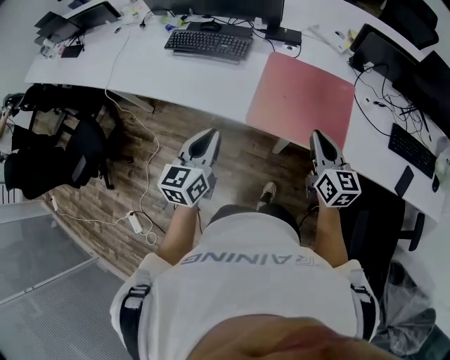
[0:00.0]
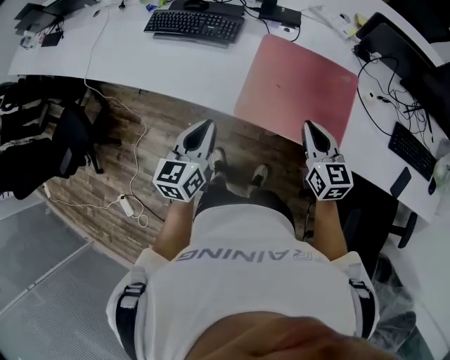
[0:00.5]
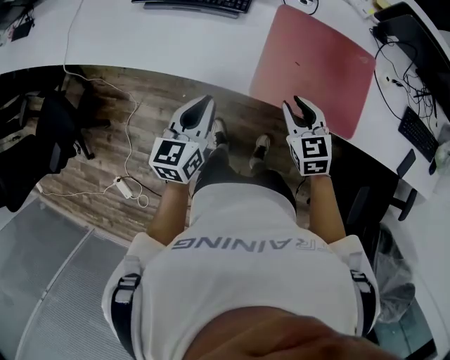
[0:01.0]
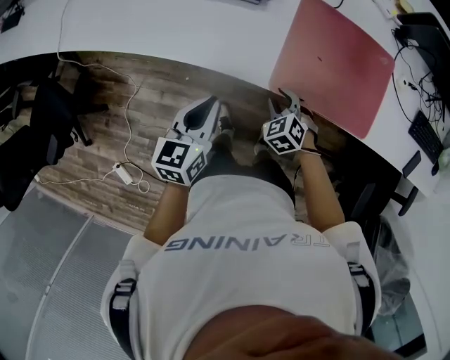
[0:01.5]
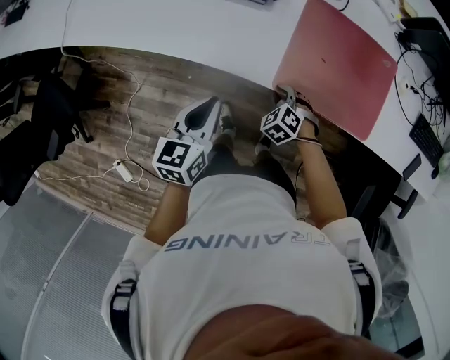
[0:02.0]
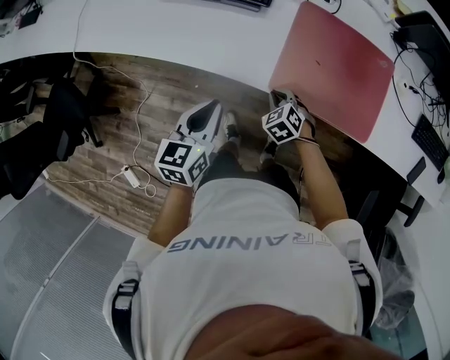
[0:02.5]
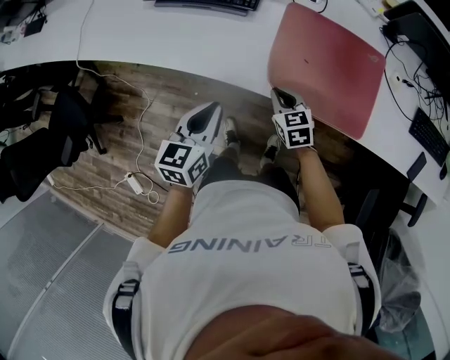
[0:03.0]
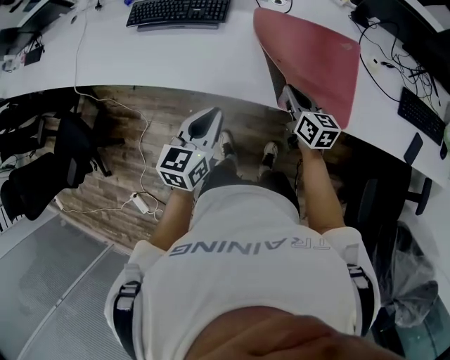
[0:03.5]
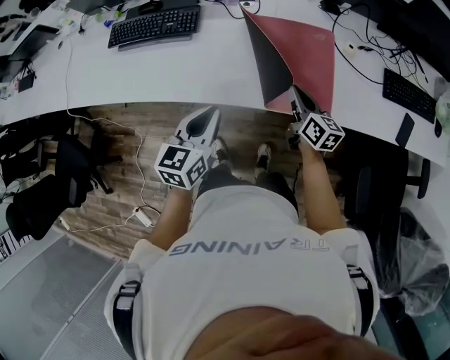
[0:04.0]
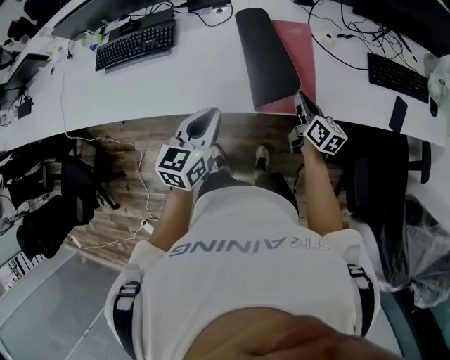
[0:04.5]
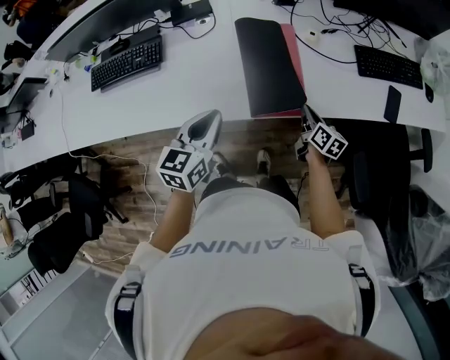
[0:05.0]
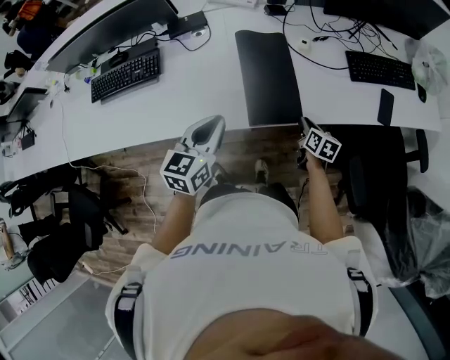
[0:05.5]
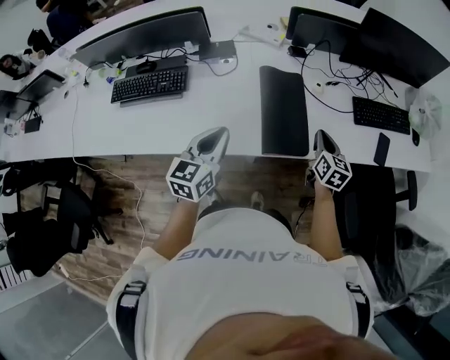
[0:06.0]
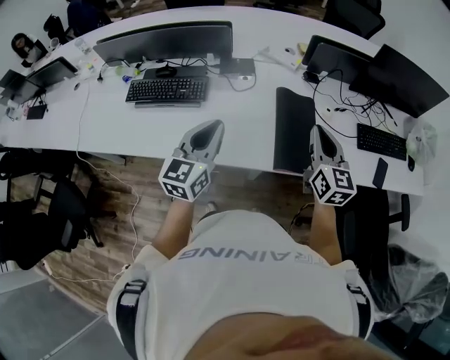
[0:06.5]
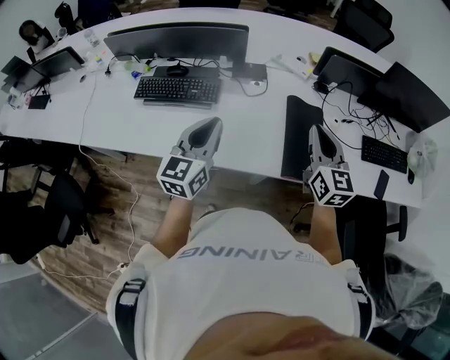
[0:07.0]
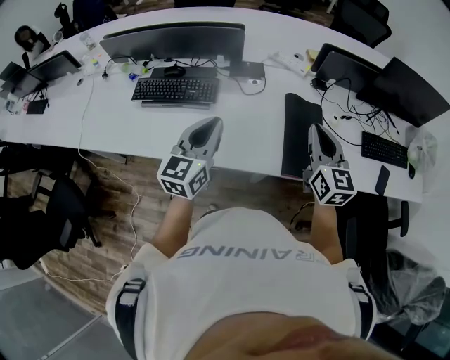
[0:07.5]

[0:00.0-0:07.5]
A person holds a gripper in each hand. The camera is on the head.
0:00.0 to 0:02.0: The right gripper heads downward and to the left, covering roughly 35 cm, and tilts its fingers about 50 degrees downward. The left gripper goes roughly 20 cm downward, to the left and forward.
0:02.0 to 0:04.0: The grippers both shift to the right and upward by some 25 cm. The right gripper rotates around the line of its fingers by approximately 80 degrees, clockwise from behind.
0:04.0 to 0:05.5: The left gripper goes roughly 15 cm to the right and forward. The right gripper travels to the right and downward by roughly 25 cm, and changes its angle by about 30 degrees.
0:05.5 to 0:07.5: The left gripper shifts about 25 cm to the left and upward, and swivels roughly 20 degrees. Meanwhile the right gripper shifts about 40 cm upward and to the left, and tips its fingers upward by approximately 30 degrees.

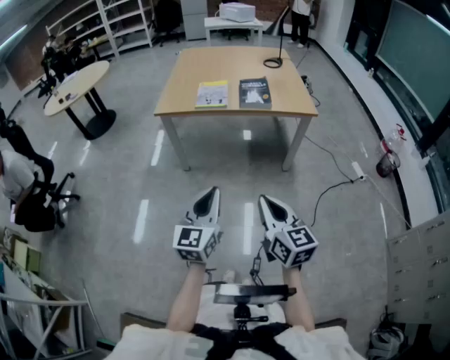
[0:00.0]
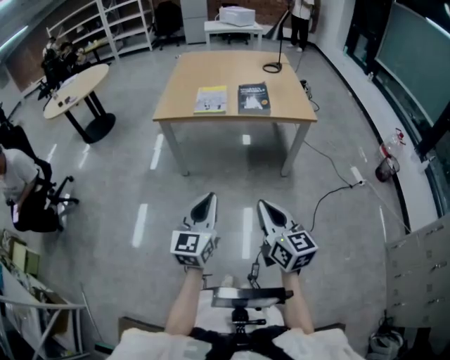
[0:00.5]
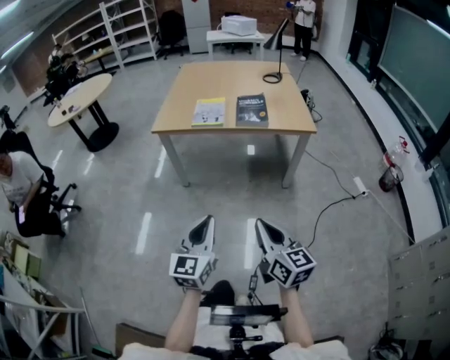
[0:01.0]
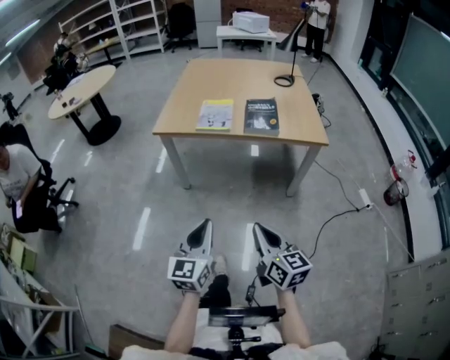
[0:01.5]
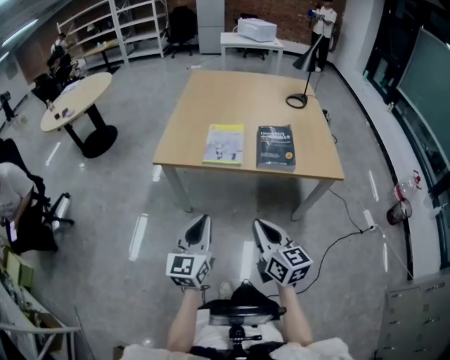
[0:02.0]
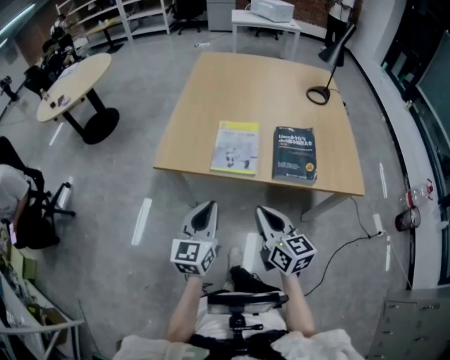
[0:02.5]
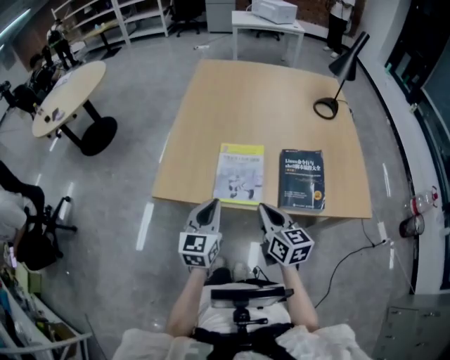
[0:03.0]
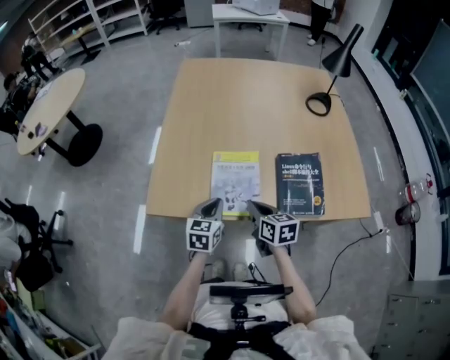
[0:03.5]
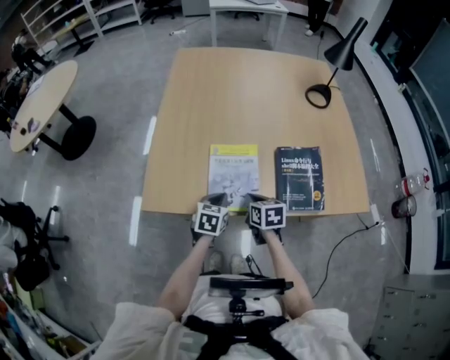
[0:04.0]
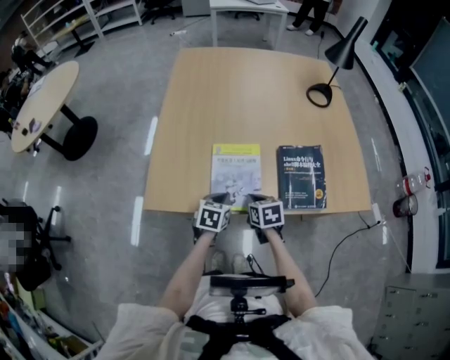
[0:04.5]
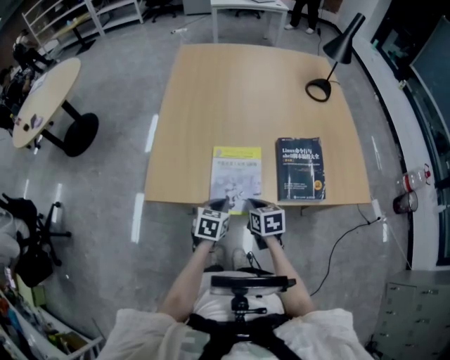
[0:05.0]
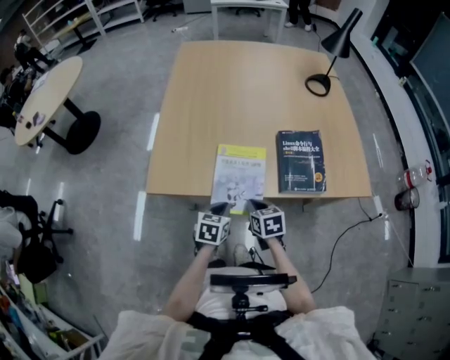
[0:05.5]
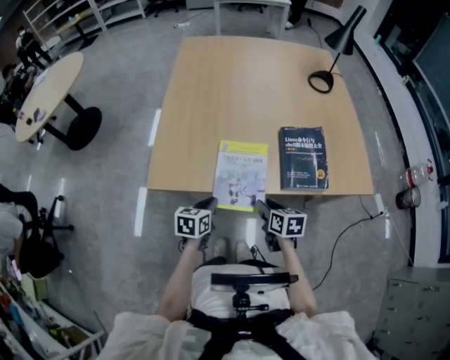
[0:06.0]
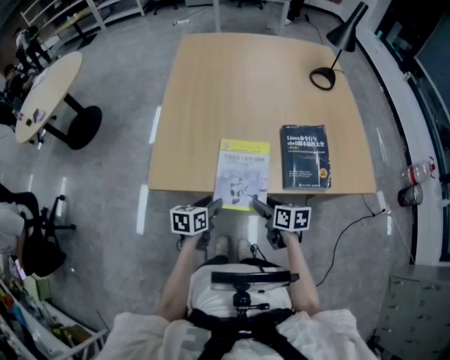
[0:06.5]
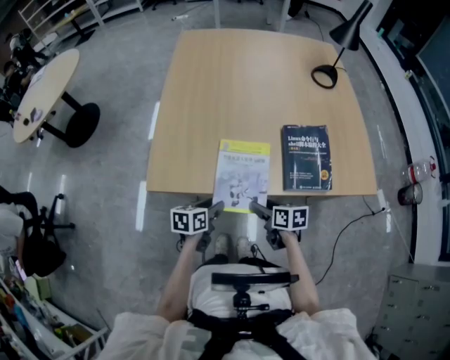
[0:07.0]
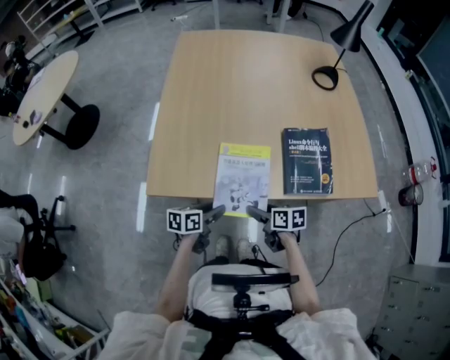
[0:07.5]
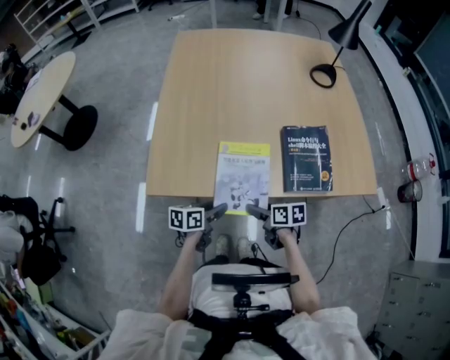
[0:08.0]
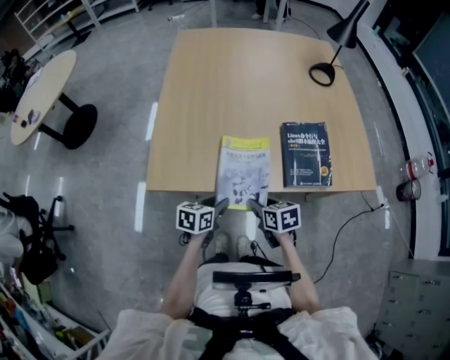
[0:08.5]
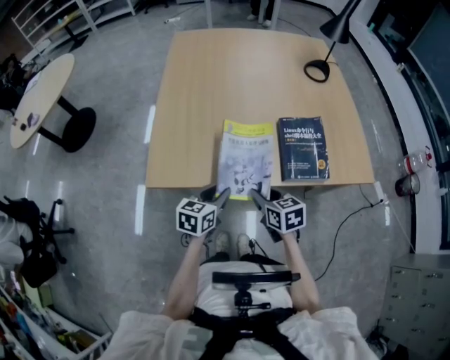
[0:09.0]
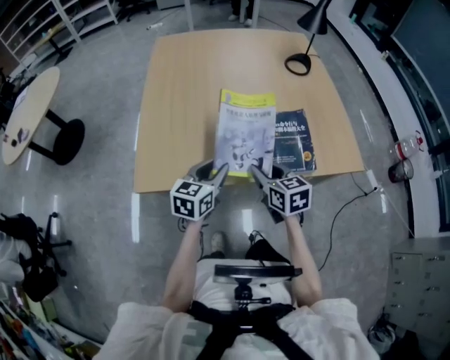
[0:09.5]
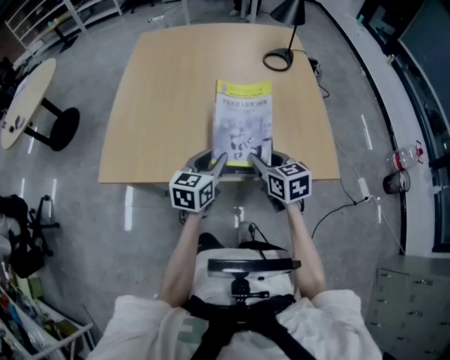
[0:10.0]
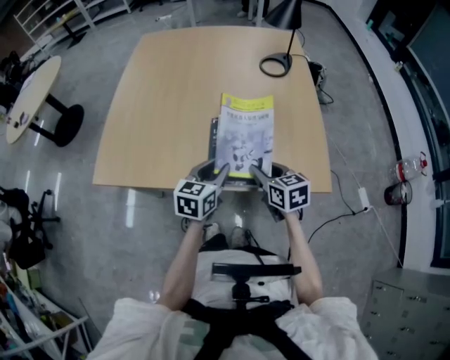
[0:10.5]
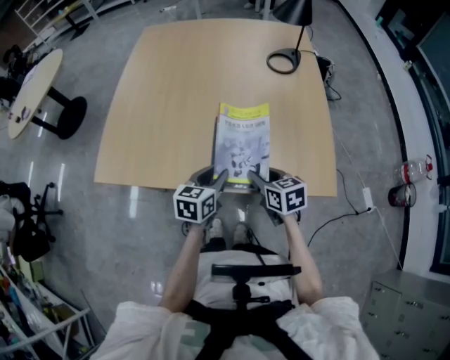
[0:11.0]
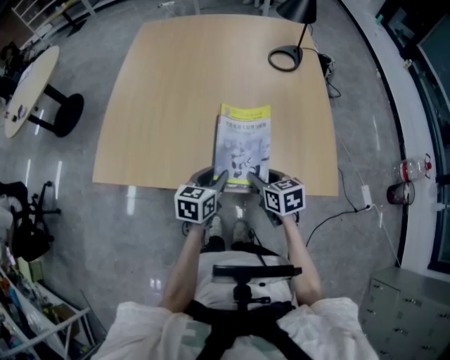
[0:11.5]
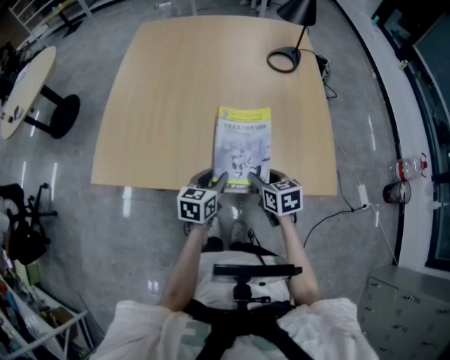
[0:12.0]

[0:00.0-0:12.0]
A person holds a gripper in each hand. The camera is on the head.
0:00.0 to 0:02.0: The grippers both shift forward by approximately 30 cm.
0:02.0 to 0:04.0: Both grippers are carried forward, approximately 40 cm. The grippers both shift downward by some 20 cm. The right gripper points its fingers approximately 40 degrees further downward, while the left gripper tips its fingers downward by approximately 40 degrees.
0:04.0 to 0:06.0: Both grippers move backward, approximately 10 cm. The right gripper opens up.
0:06.0 to 0:08.0: The right gripper shifts by some 5 cm, and turns by approximately 20 degrees; the left gripper rotates about 30 degrees, and opens.
0:08.0 to 0:10.0: The two grippers go approximately 30 cm to the right and upward. The right gripper turns by some 40 degrees, and closes; the left gripper changes its angle by roughly 40 degrees.
0:10.0 to 0:12.0: The two grippers go about 10 cm downward.

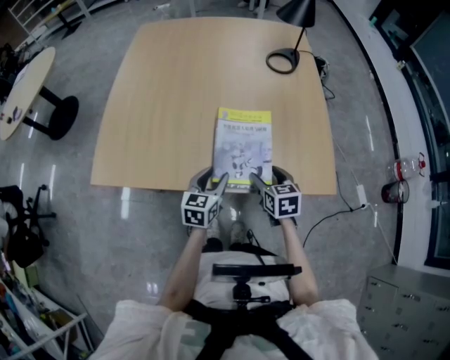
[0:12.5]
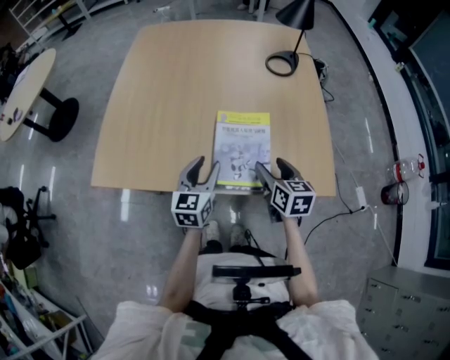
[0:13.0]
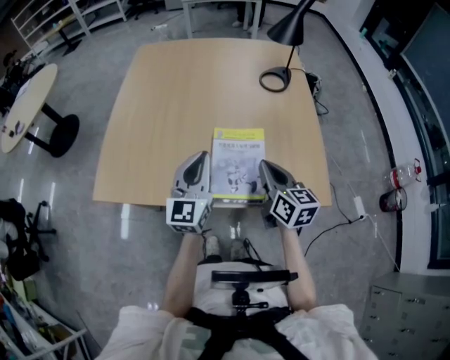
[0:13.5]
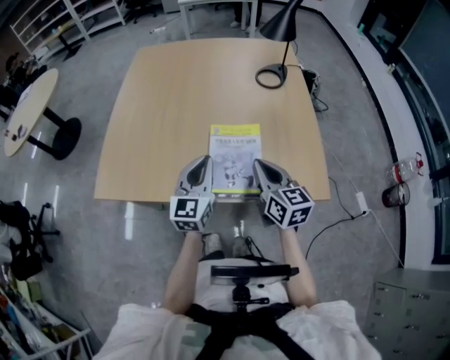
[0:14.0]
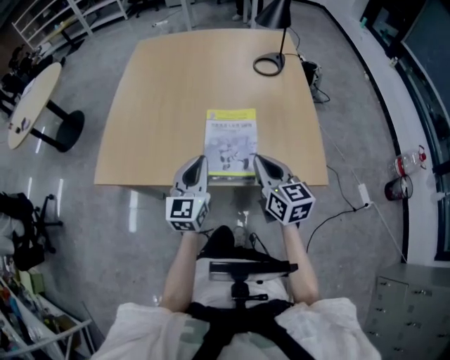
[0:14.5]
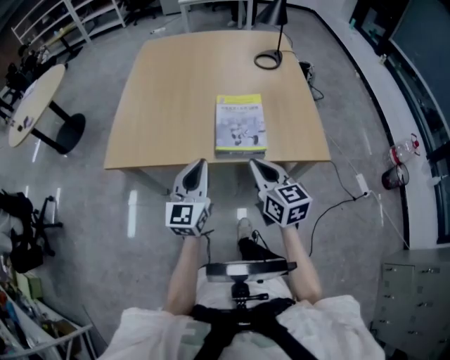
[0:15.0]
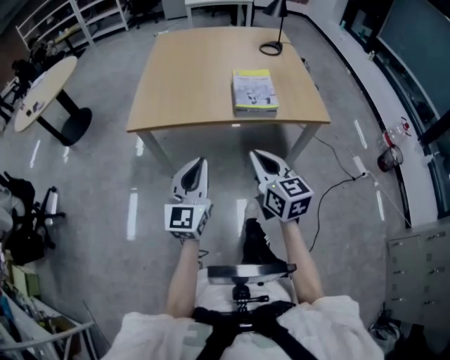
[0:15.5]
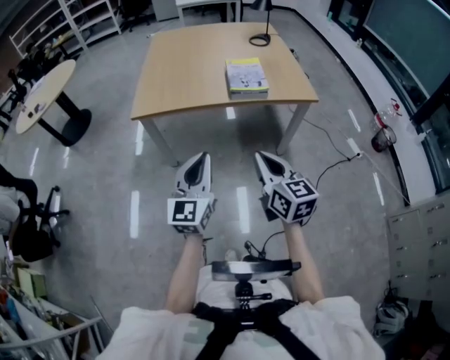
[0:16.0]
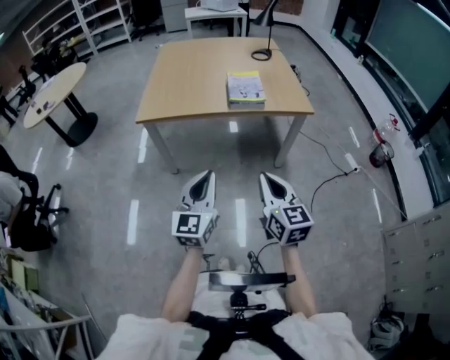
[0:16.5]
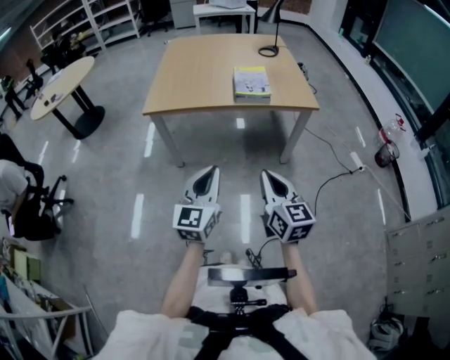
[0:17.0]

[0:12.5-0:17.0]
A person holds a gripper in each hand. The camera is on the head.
0:12.5 to 0:14.5: Both grippers move upward, approximately 15 cm. The right gripper changes its angle by some 30 degrees, and closes. Meanwhile the left gripper turns by approximately 30 degrees, and closes.
0:14.5 to 0:17.0: Both grippers are carried backward, some 50 cm.

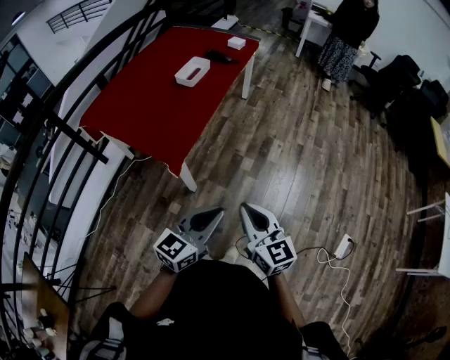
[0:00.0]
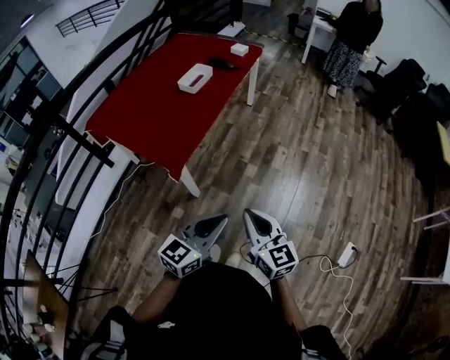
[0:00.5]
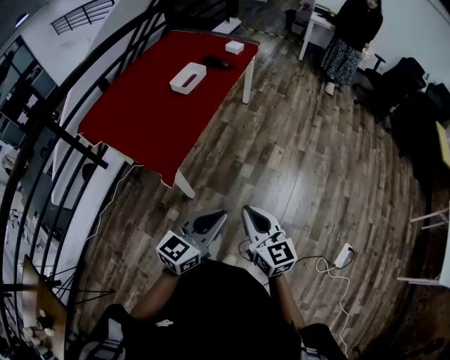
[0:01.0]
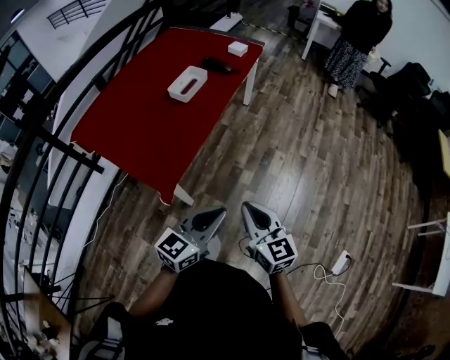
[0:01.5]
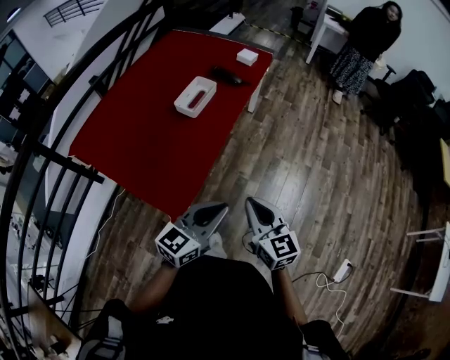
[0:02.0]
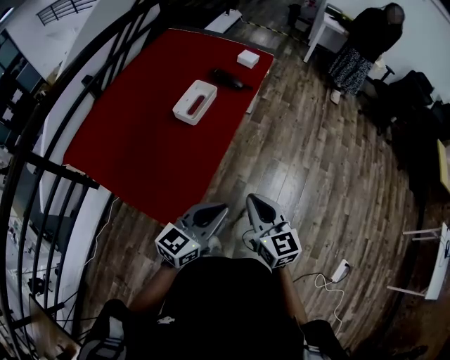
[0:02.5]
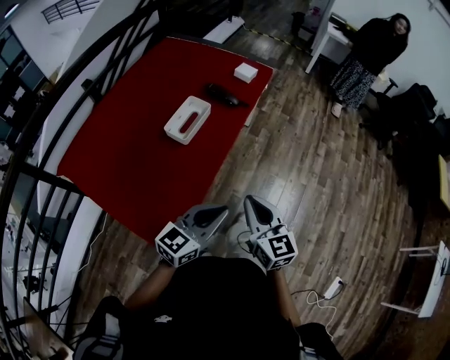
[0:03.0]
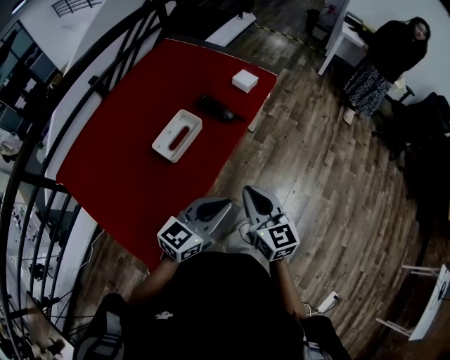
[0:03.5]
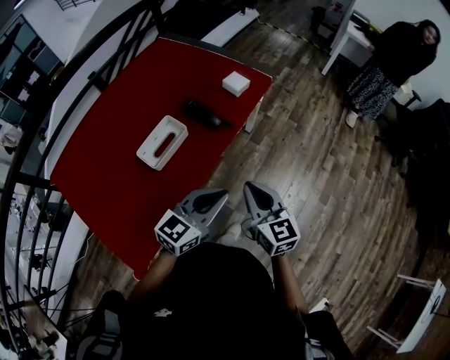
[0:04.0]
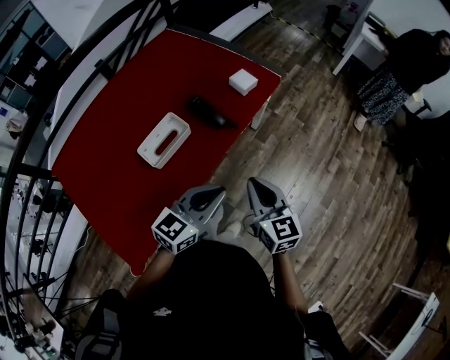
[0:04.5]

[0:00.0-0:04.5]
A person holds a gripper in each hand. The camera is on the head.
0:00.0 to 0:02.0: Both grippers move forward, roughly 30 cm.
0:02.0 to 0:04.5: The pair of grippers is taken forward, approximately 50 cm.
